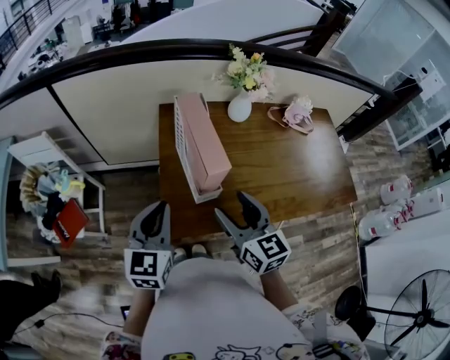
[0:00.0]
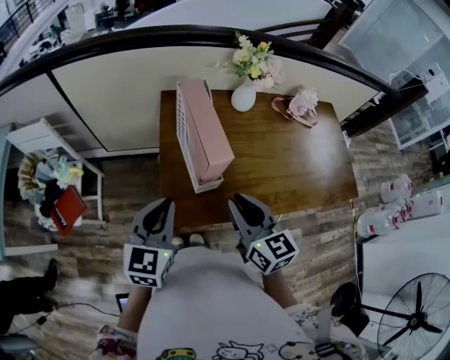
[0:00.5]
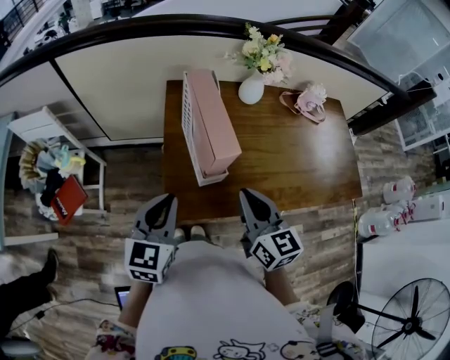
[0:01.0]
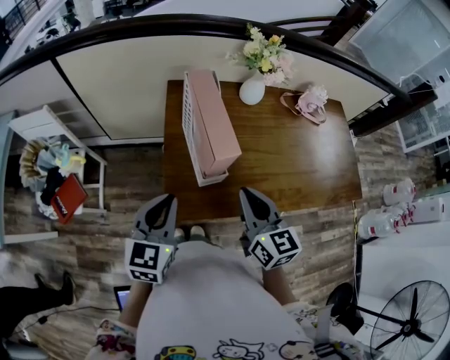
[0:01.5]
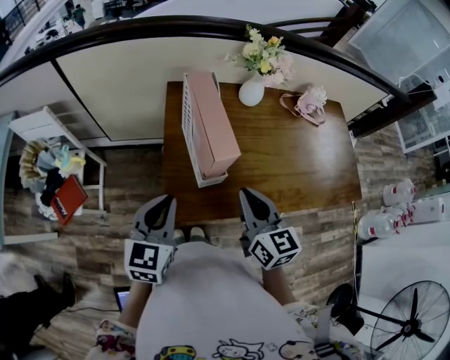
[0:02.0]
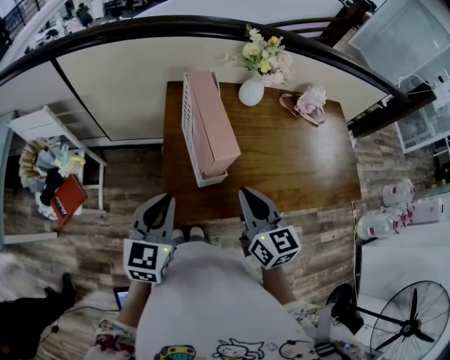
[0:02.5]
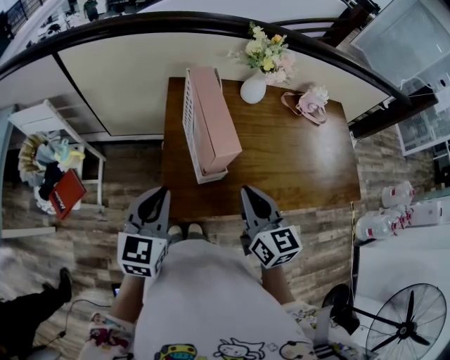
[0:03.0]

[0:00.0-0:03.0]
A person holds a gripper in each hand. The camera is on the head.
0:00.0 to 0:01.5: The right gripper closes up.
0:01.5 to 0:03.0: The grippers stay close to where they were, moving slightly.

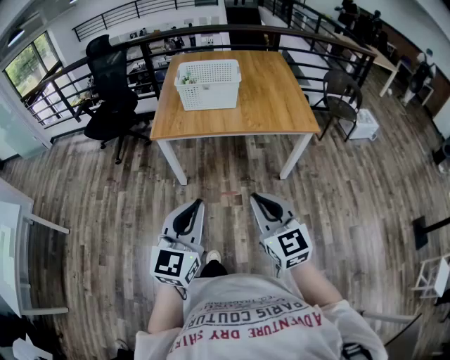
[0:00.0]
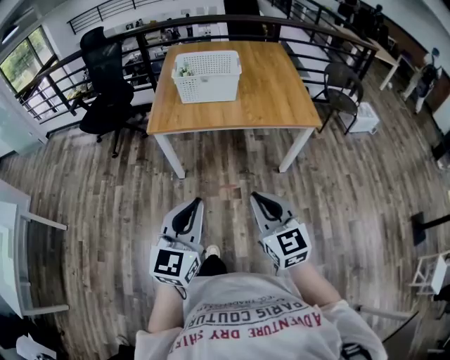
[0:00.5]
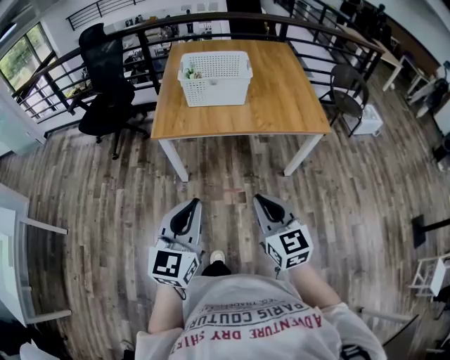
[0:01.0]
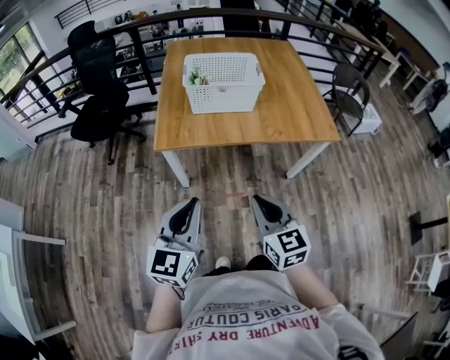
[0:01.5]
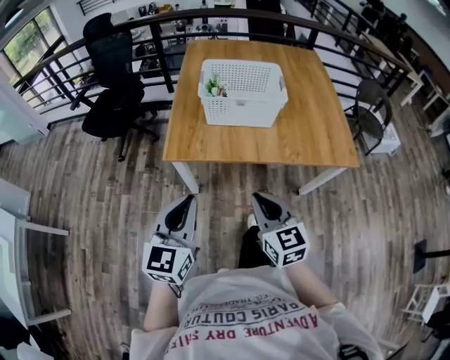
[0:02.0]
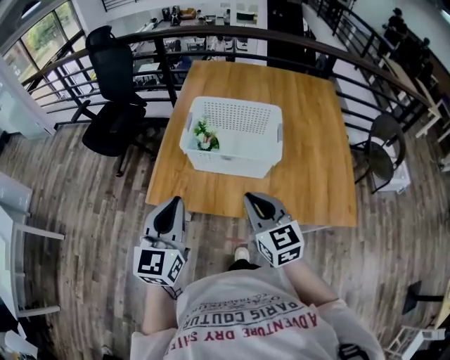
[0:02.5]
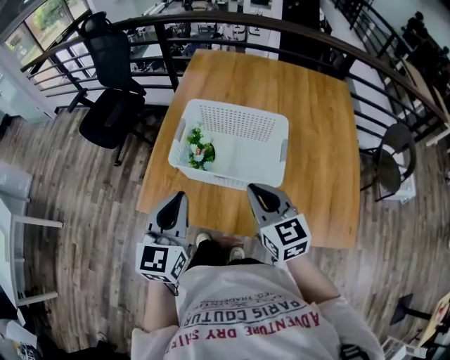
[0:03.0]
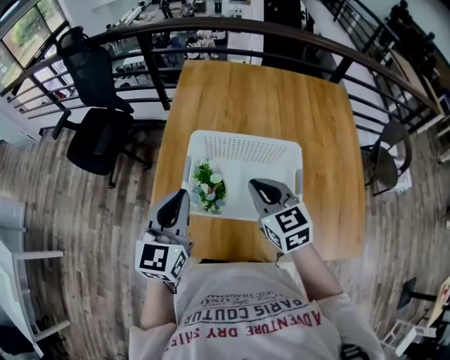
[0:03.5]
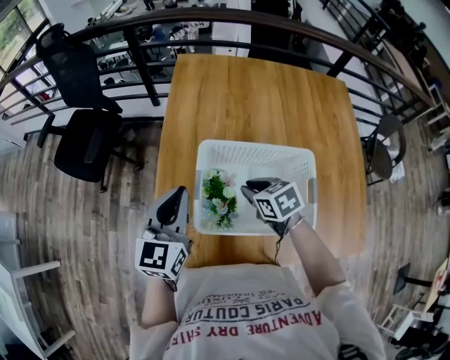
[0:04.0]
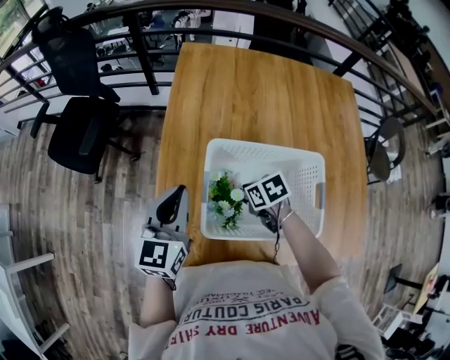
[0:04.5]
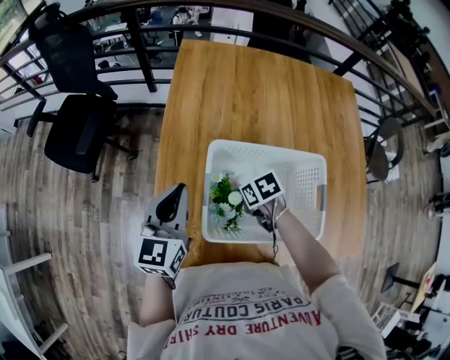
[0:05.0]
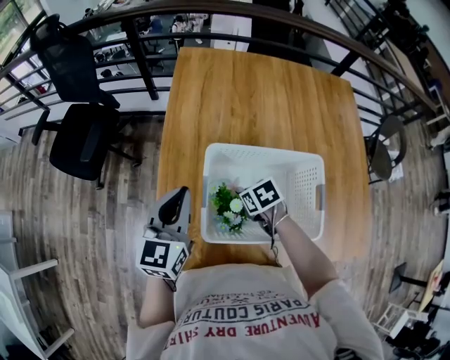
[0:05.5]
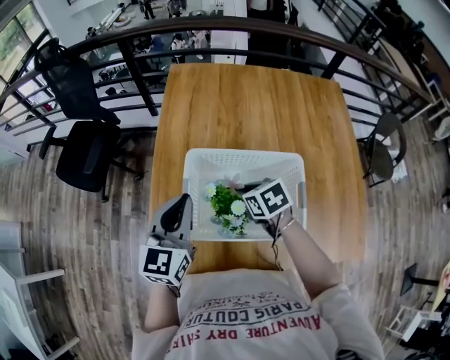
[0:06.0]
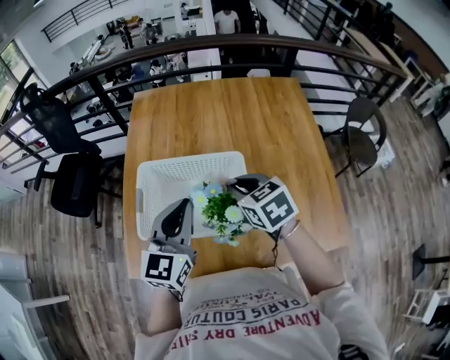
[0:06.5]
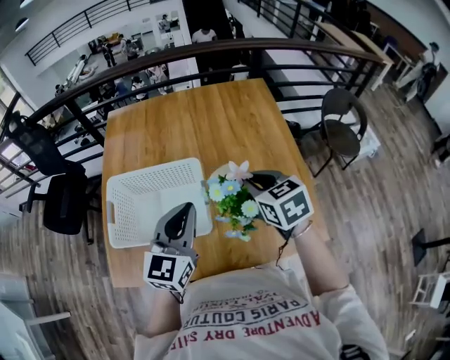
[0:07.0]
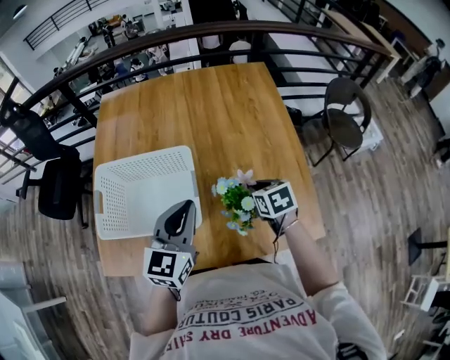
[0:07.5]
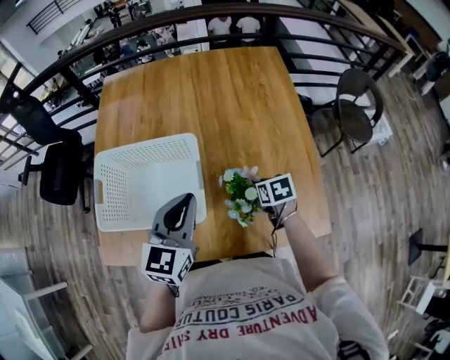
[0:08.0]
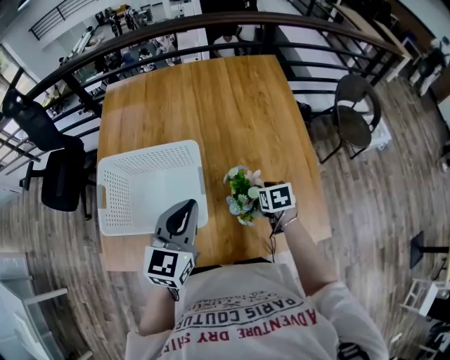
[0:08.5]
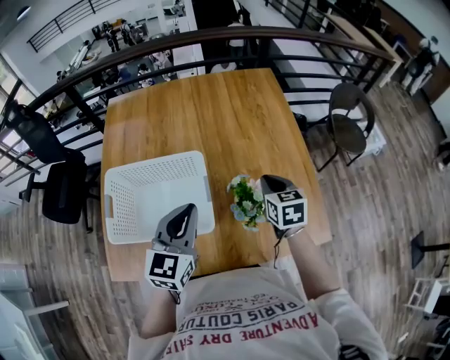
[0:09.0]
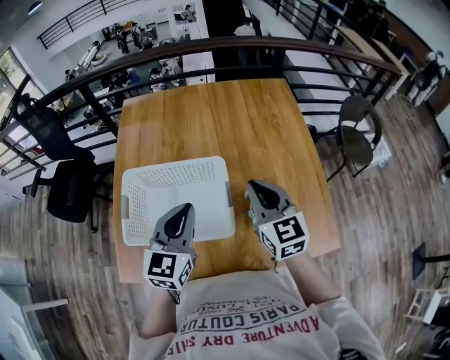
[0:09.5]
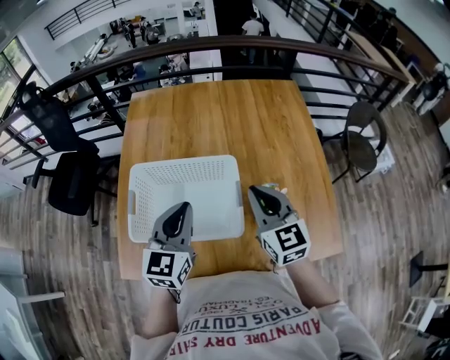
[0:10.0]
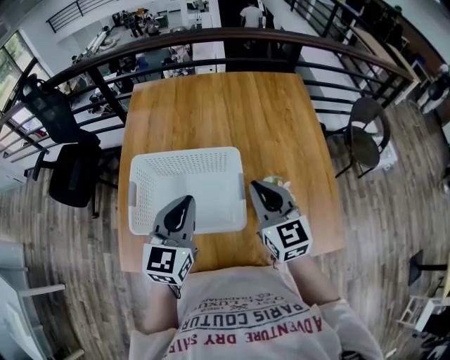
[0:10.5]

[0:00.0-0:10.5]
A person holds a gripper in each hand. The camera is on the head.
0:00.0 to 0:02.0: The left gripper goes approximately 35 cm forward and to the left. Meanwhile the right gripper shifts about 30 cm forward.
0:02.0 to 0:04.0: The two grippers travel together, forward, approximately 60 cm. The right gripper points its fingers approximately 40 degrees further downward.
0:04.0 to 0:06.5: The left gripper moves to the right and backward, approximately 20 cm. Meanwhile the right gripper goes about 20 cm to the right, upward and backward.
0:06.5 to 0:08.5: The right gripper is displaced to the right and downward by approximately 35 cm, and swivels approximately 30 degrees, while the left gripper shifts some 15 cm to the right and downward.
0:08.5 to 0:10.5: The right gripper moves upward and to the left, some 30 cm, points its fingers some 50 degrees further upward, and closes up. The left gripper travels to the left by some 10 cm.

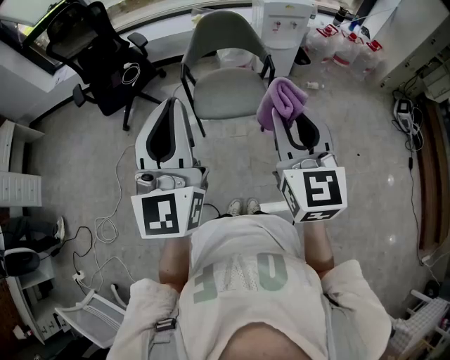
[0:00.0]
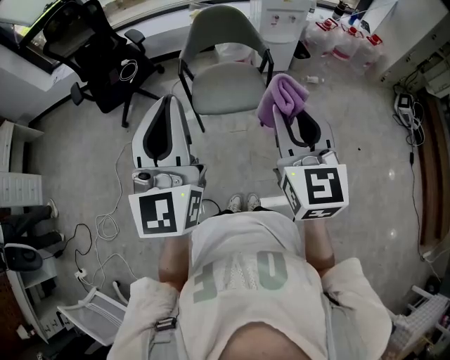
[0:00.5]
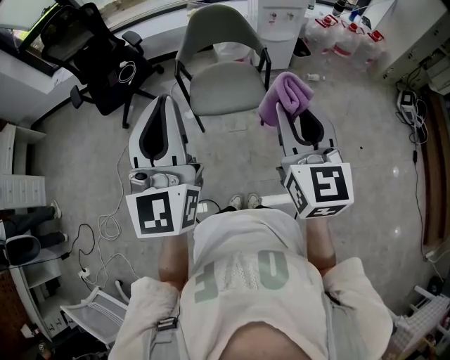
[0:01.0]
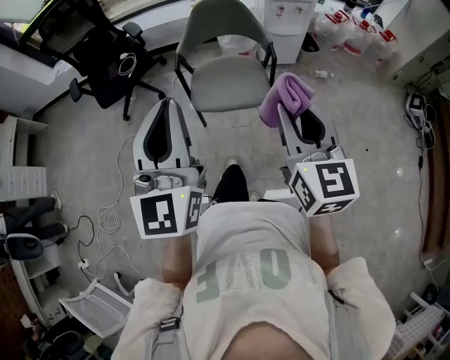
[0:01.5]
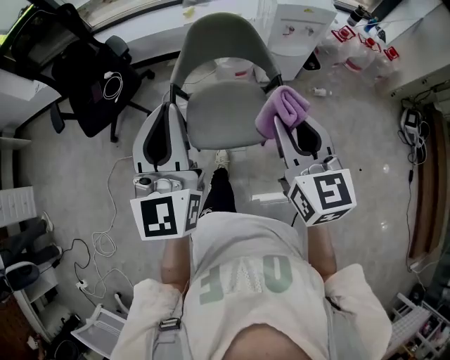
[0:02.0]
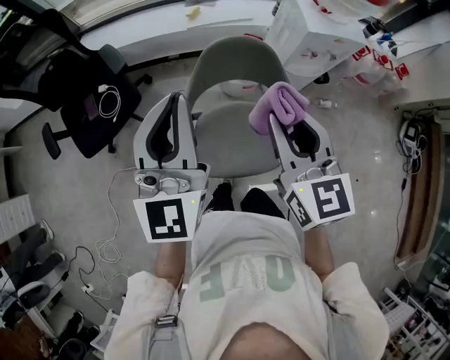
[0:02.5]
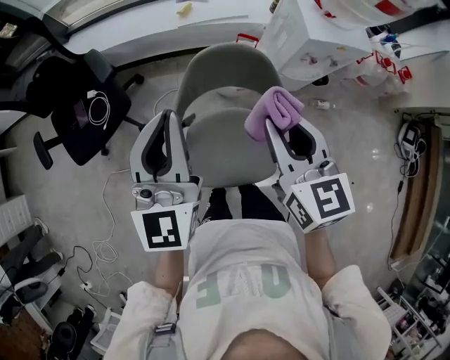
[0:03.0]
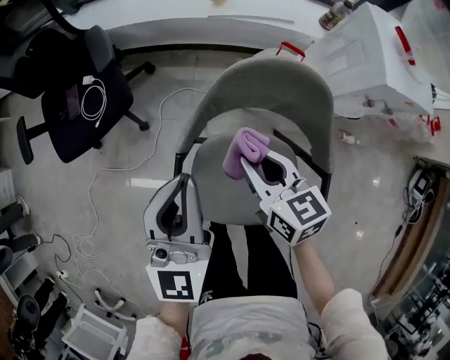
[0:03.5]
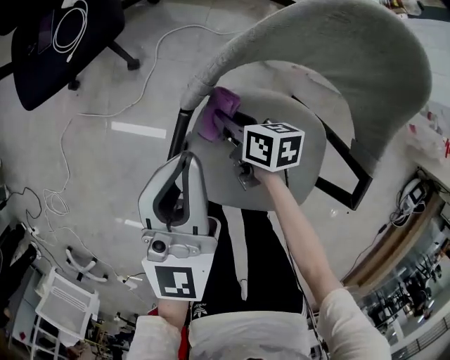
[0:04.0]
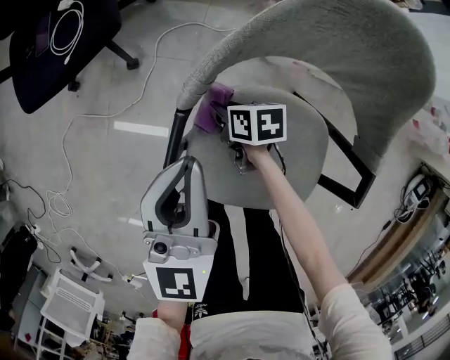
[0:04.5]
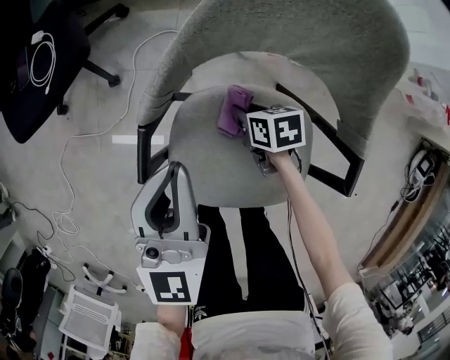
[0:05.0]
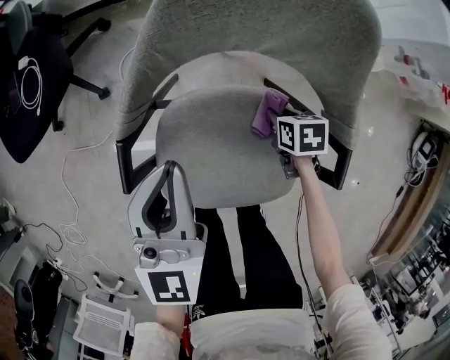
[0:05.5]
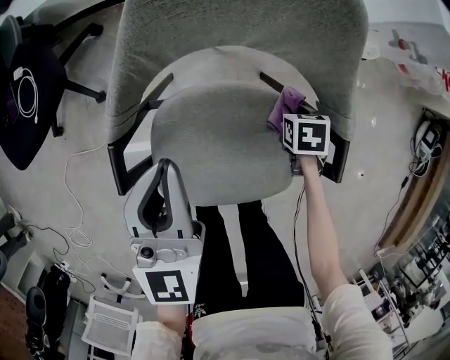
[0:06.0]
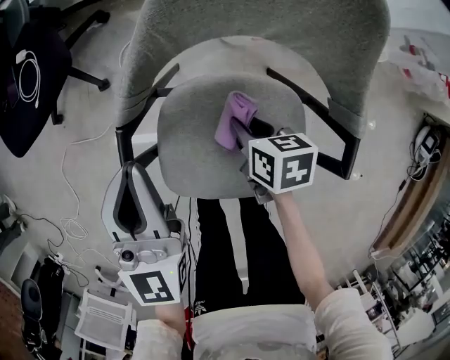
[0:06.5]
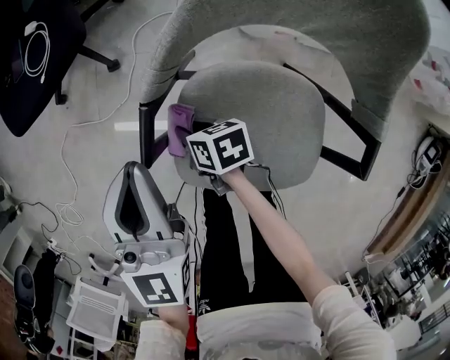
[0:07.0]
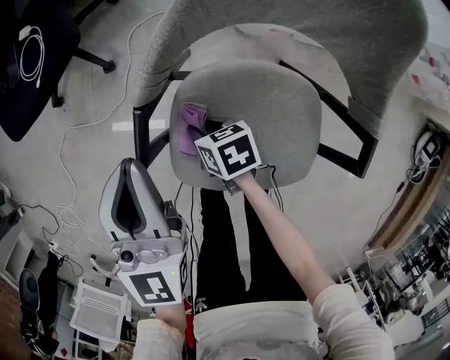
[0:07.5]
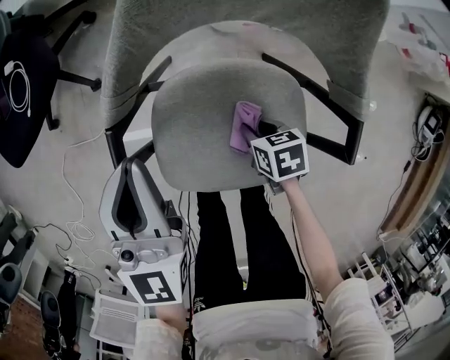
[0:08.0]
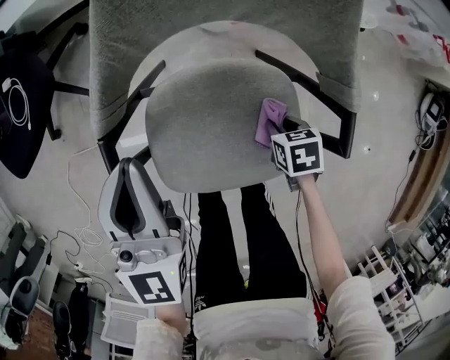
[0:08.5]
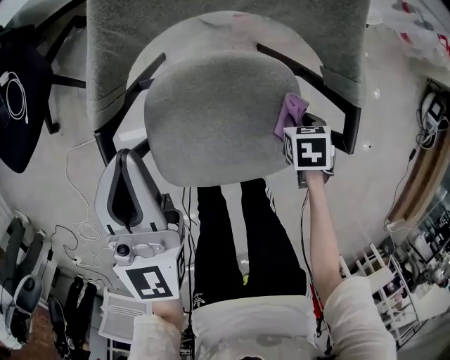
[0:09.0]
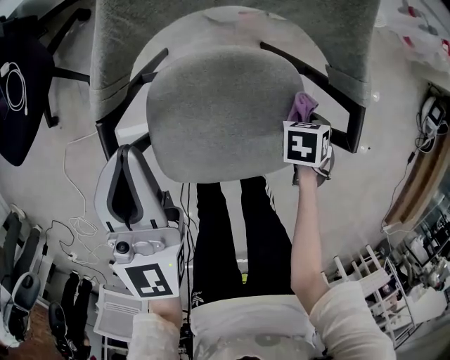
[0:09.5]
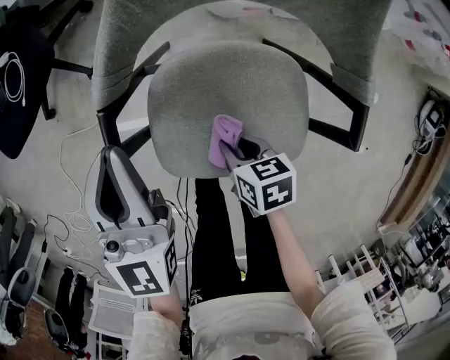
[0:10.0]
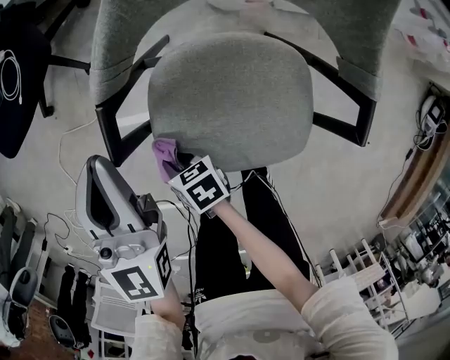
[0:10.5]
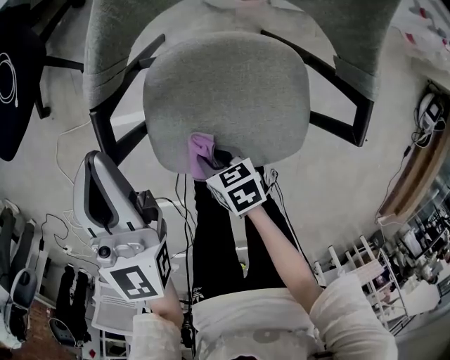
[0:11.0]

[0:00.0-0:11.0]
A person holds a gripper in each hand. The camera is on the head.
0:00.0 to 0:02.0: The two grippers go some 25 cm forward.
0:02.0 to 0:03.5: Both grippers travel together forward and downward, approximately 40 cm. The right gripper turns by about 30 degrees.
0:03.5 to 0:05.5: The right gripper is displaced downward and to the right by some 35 cm, and angles its fingers downward, by some 40 degrees. The left gripper shifts roughly 15 cm downward.
0:05.5 to 0:07.5: The right gripper moves about 30 cm, and changes its angle by some 20 degrees, while the left gripper moves roughly 10 cm.
0:07.5 to 0:09.0: The right gripper ends up roughly 35 cm from where it was, and points its fingers some 30 degrees further downward, while the left gripper moves some 10 cm.
0:09.0 to 0:11.0: The left gripper moves some 5 cm; the right gripper moves about 30 cm, and rotates approximately 40 degrees.

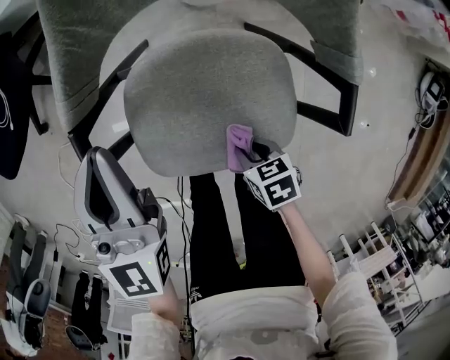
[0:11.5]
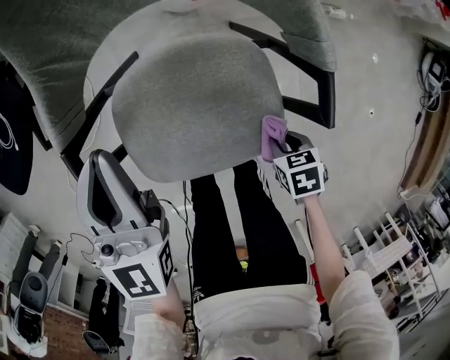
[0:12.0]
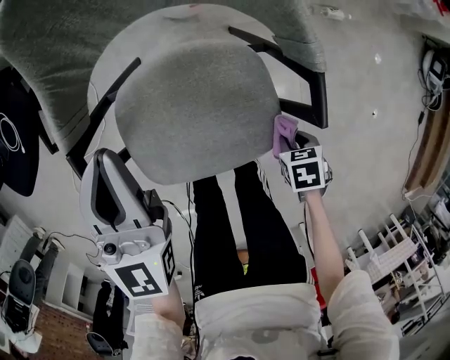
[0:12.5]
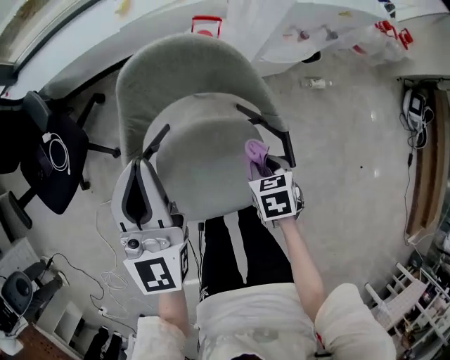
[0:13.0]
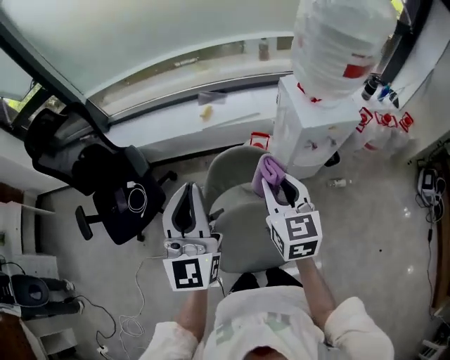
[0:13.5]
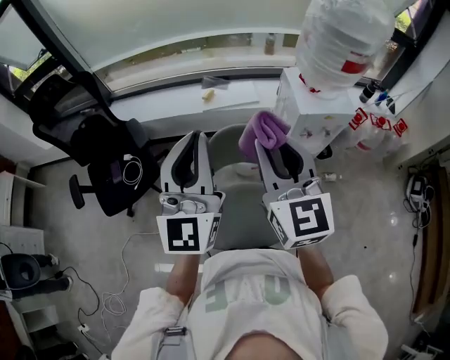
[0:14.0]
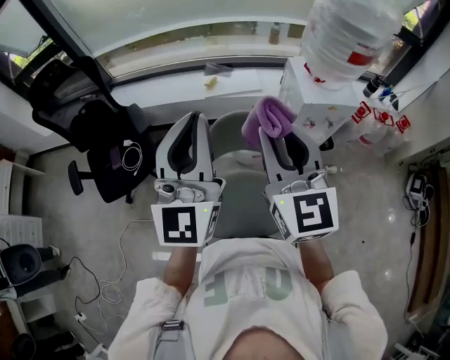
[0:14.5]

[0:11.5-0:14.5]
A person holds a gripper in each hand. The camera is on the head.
0:11.5 to 0:13.0: Both grippers move upward, roughly 15 cm. The right gripper rotates roughly 30 degrees.
0:13.0 to 0:14.5: The right gripper moves upward, approximately 60 cm, and angles its fingers upward, by approximately 70 degrees. Meanwhile the left gripper is displaced upward by roughly 35 cm, and swivels roughly 20 degrees.
